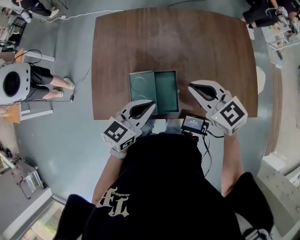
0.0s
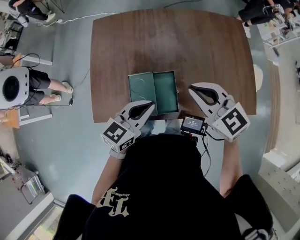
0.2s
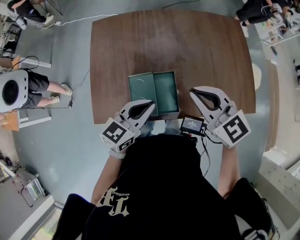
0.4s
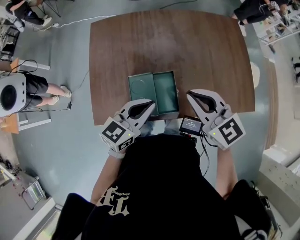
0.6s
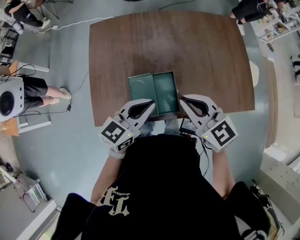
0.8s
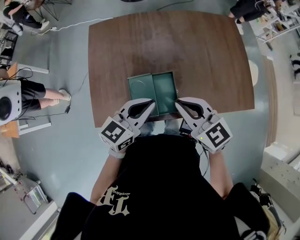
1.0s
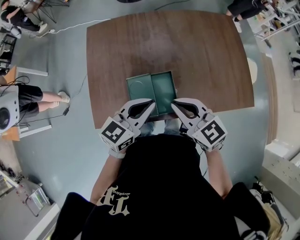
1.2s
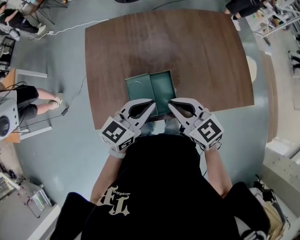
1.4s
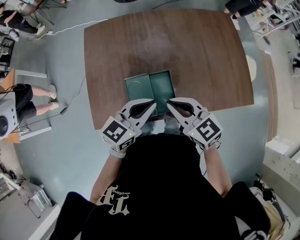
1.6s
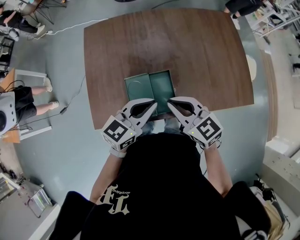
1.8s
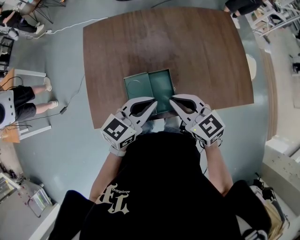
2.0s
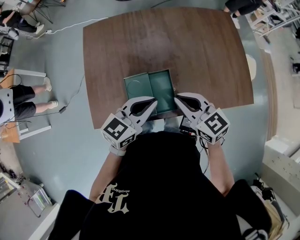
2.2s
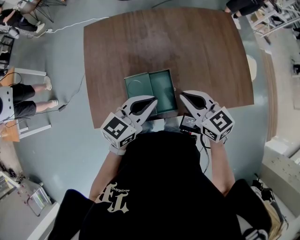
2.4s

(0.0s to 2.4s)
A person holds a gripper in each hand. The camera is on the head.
0.0s - 1.2s: The right gripper heads backward, covering about 5 cm.
1.2s - 2.4s: The right gripper ends up some 5 cm from where it was.

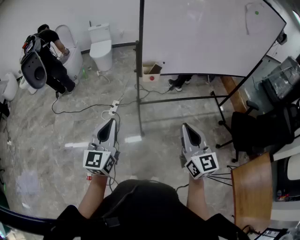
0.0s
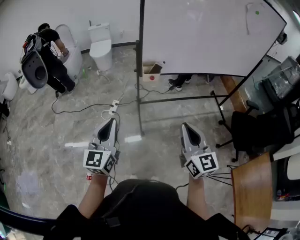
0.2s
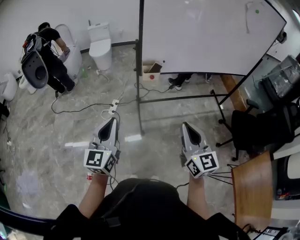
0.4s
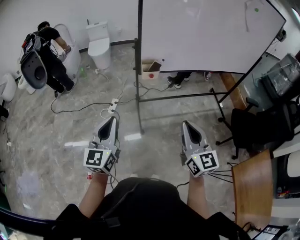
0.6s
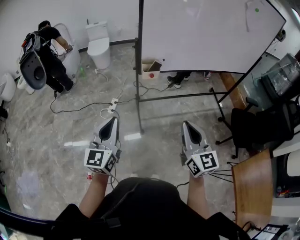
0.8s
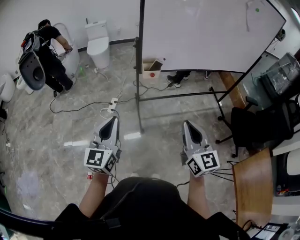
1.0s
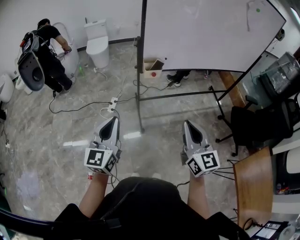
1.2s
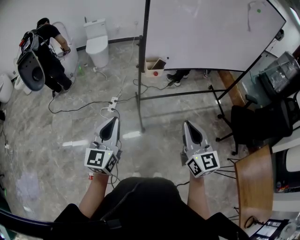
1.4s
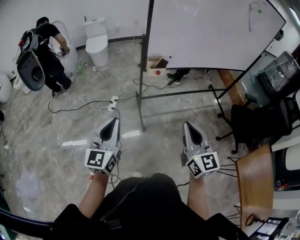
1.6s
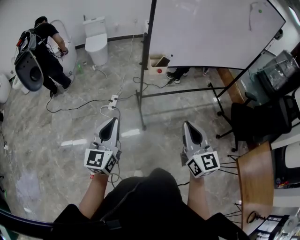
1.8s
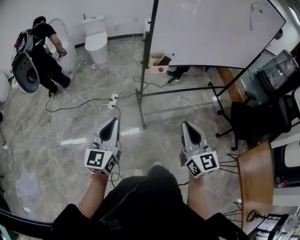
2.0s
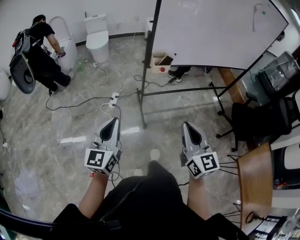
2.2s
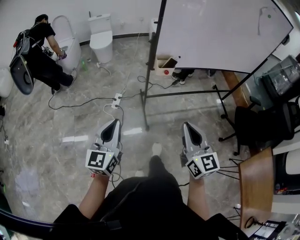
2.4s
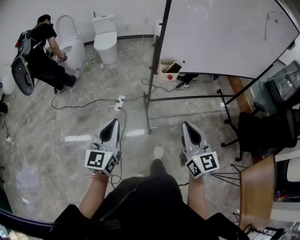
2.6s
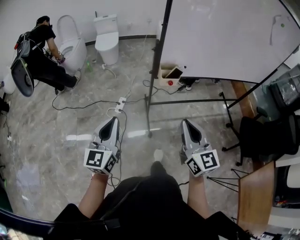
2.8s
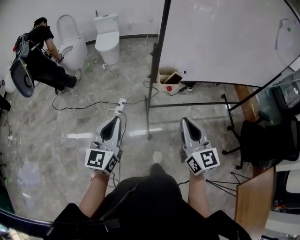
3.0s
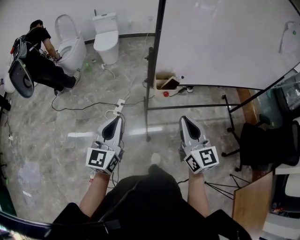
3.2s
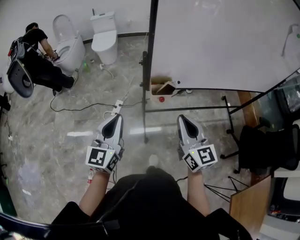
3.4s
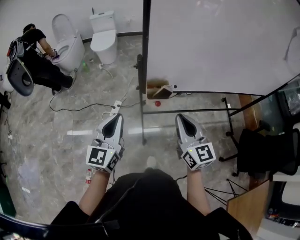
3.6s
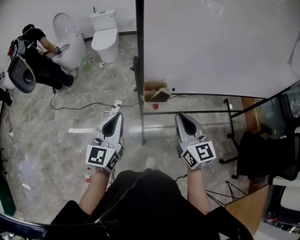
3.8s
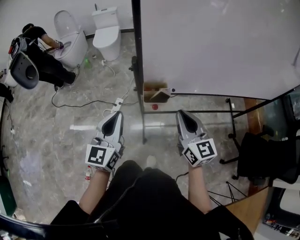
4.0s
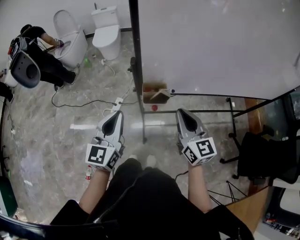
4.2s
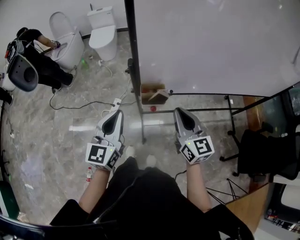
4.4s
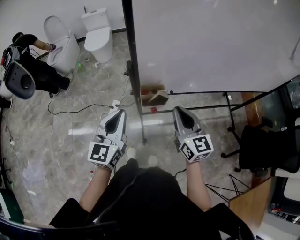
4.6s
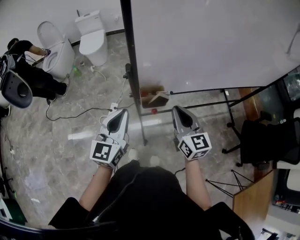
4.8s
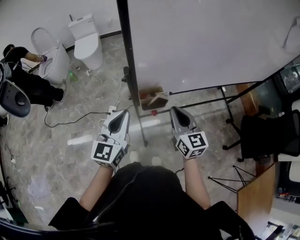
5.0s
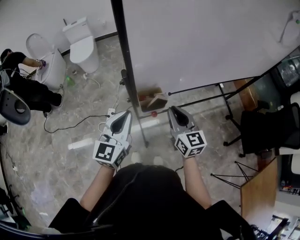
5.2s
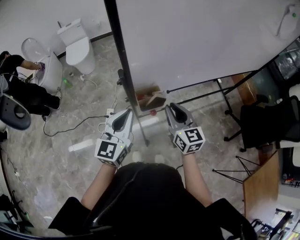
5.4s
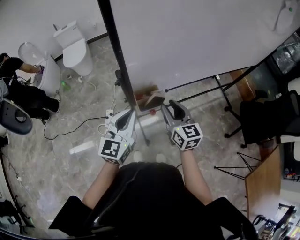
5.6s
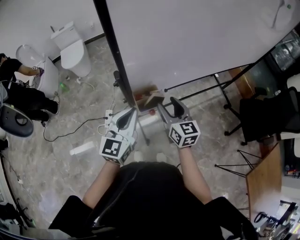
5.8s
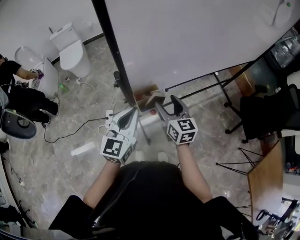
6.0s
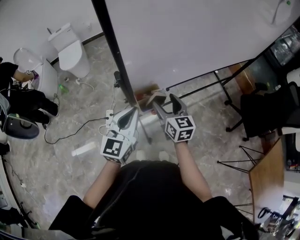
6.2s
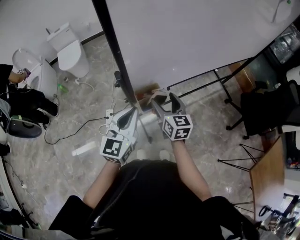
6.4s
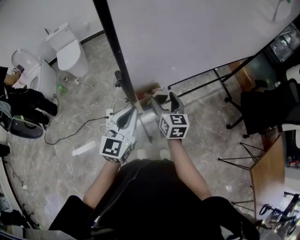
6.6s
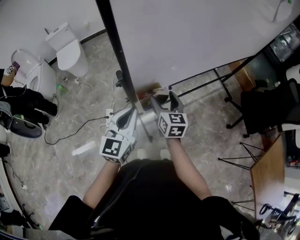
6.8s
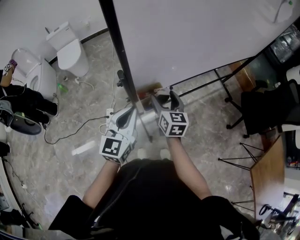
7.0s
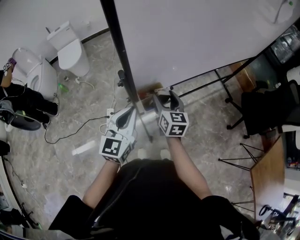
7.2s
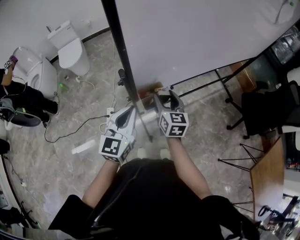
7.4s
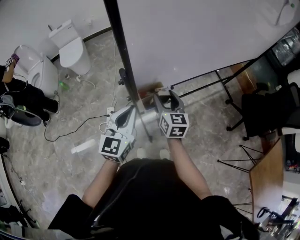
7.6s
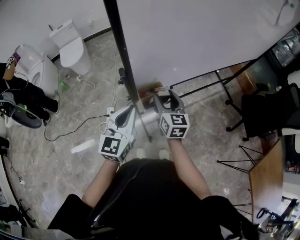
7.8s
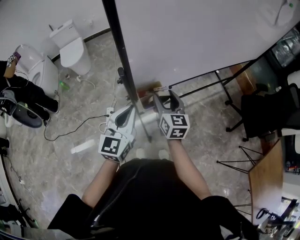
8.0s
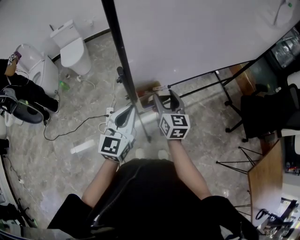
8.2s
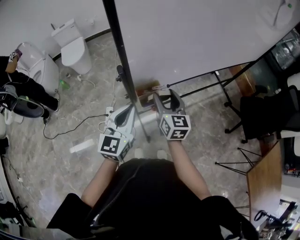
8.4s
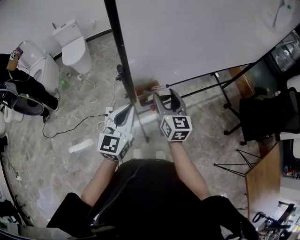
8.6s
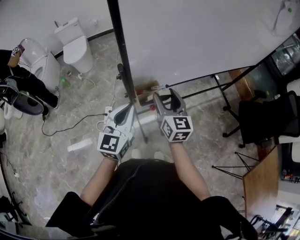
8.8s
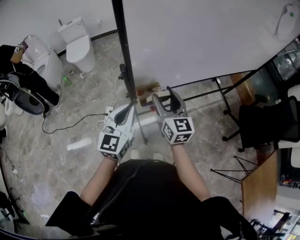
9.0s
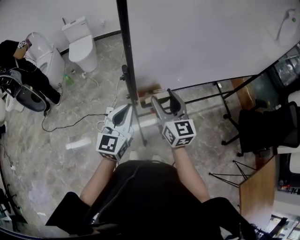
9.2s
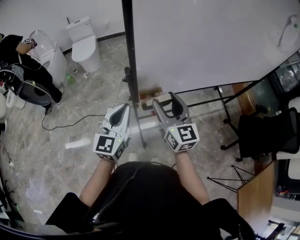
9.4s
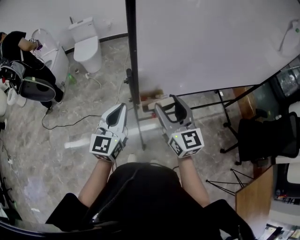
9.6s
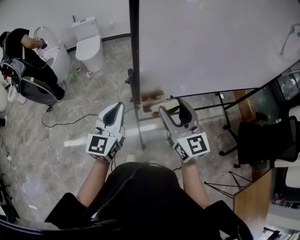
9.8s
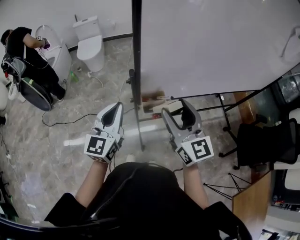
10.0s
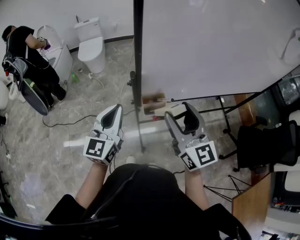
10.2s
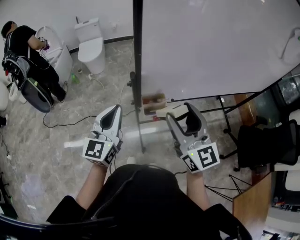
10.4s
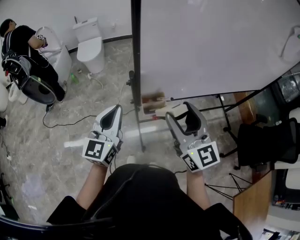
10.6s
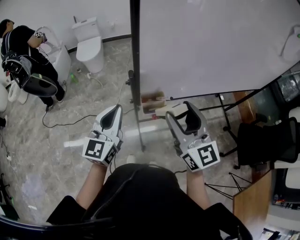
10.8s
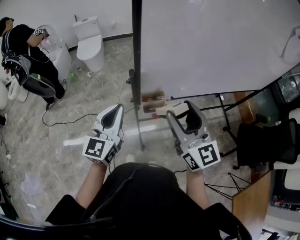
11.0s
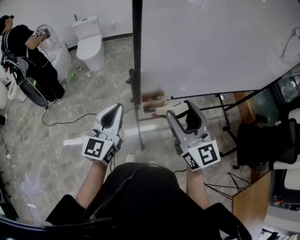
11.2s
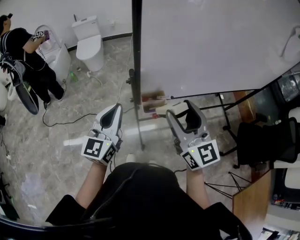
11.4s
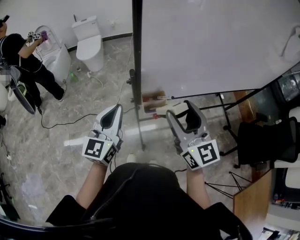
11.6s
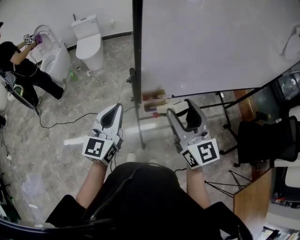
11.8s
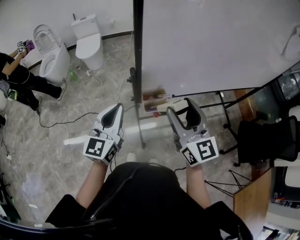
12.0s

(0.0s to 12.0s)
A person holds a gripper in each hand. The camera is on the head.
0.0s - 1.6s: Both grippers move to the left, approximately 5 cm.
1.6s - 3.0s: The grippers both shift forward by roughly 15 cm.
3.0s - 4.4s: The grippers both shift forward and to the right by roughly 20 cm.
4.4s - 6.0s: The left gripper is displaced forward by some 10 cm, and changes its angle by about 30 degrees; the right gripper shifts some 10 cm downward and forward, rotates some 20 degrees, and opens.
6.0s - 7.6s: There are only small adjustments of the grippers.
7.6s - 9.0s: The right gripper shifts roughly 5 cm upward.
9.0s - 10.4s: The right gripper shifts some 15 cm upward and backward. Meanwhile the left gripper heads upward and to the left, covering about 10 cm.
10.4s - 12.0s: The grippers make only small movements.

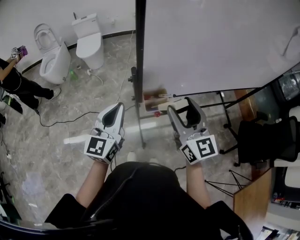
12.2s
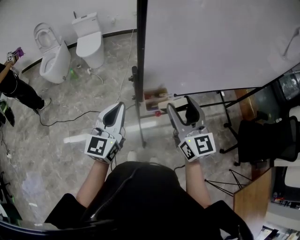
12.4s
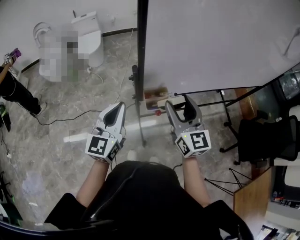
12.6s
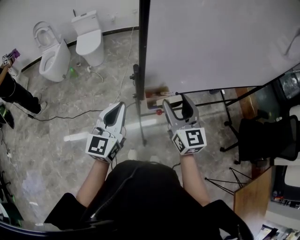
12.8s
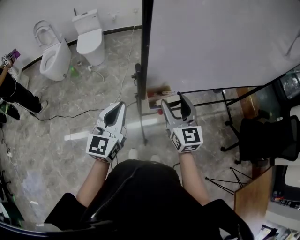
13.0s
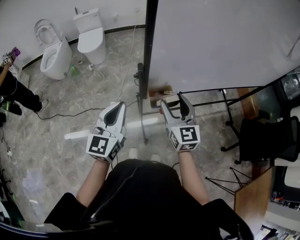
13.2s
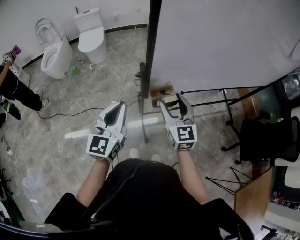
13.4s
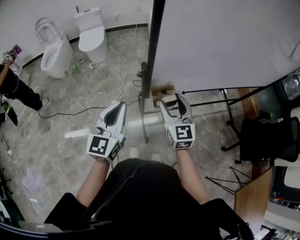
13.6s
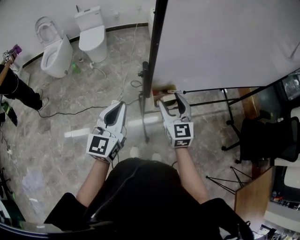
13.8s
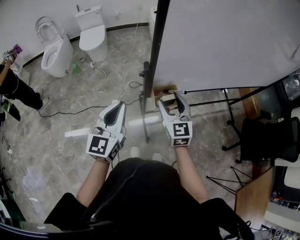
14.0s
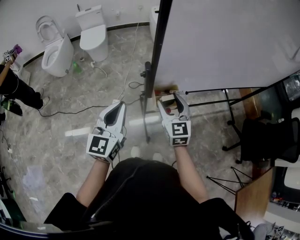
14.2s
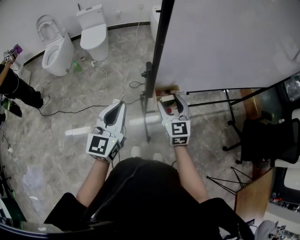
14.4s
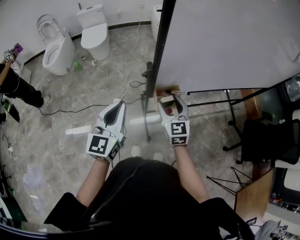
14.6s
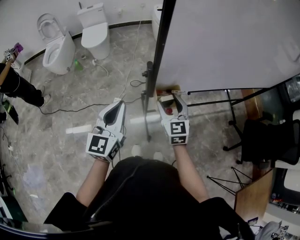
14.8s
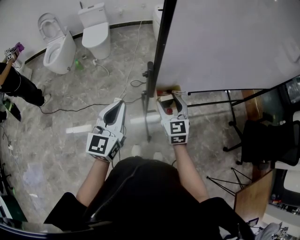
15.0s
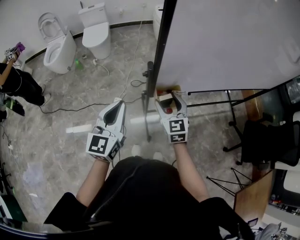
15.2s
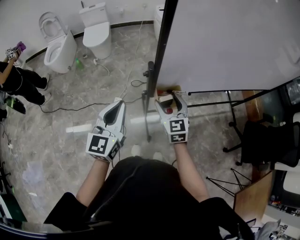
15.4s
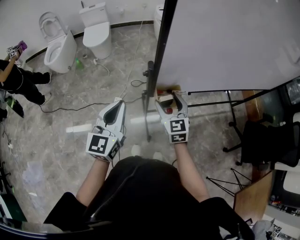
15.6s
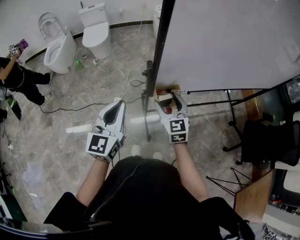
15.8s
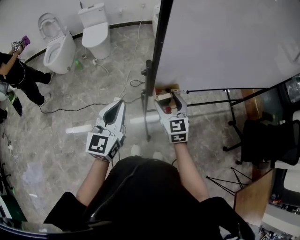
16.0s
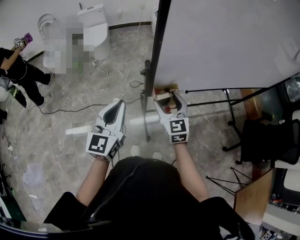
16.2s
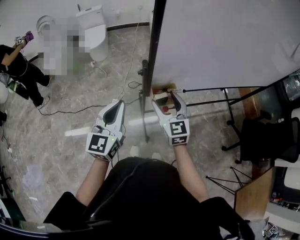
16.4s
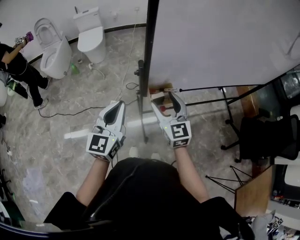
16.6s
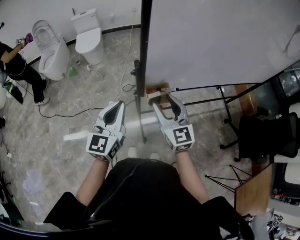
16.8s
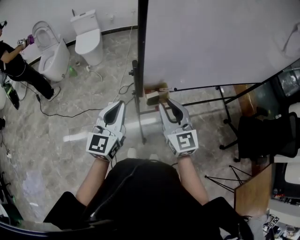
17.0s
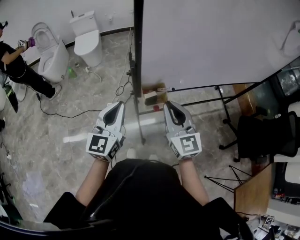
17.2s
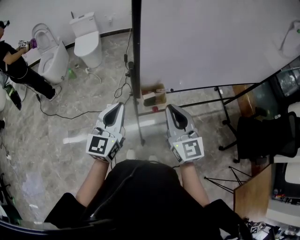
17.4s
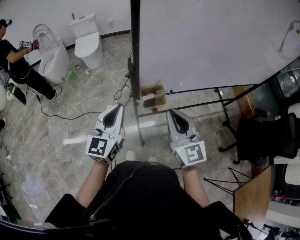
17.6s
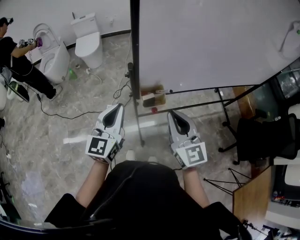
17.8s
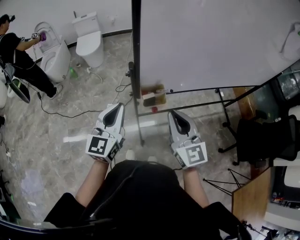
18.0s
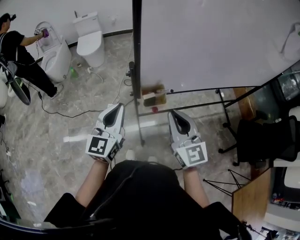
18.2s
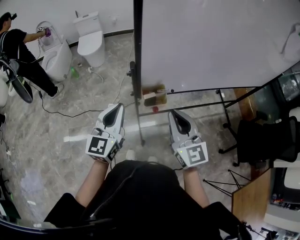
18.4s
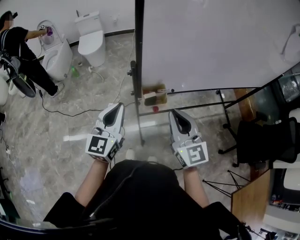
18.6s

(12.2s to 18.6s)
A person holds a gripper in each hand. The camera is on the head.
12.2s - 13.8s: The right gripper heads downward, to the left and forward, covering about 15 cm.
13.8s - 15.4s: The grippers stay close to where they were, moving slightly.
15.4s - 17.0s: The right gripper heads upward and backward, covering approximately 10 cm, and closes its fingers.
17.0s - 18.6s: The right gripper ends up about 5 cm from where it was.

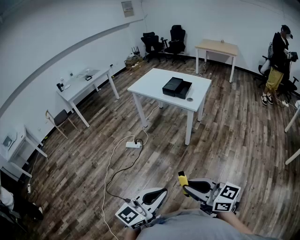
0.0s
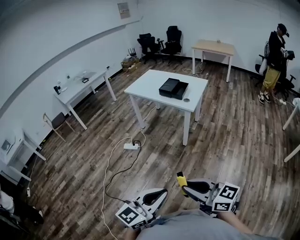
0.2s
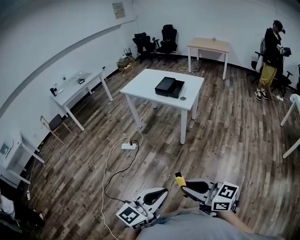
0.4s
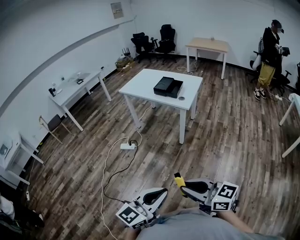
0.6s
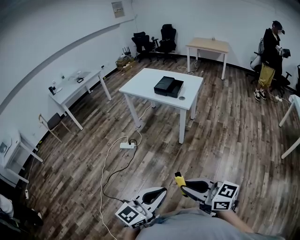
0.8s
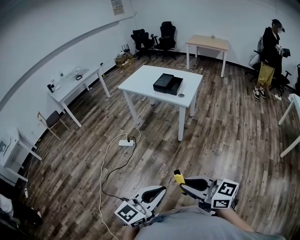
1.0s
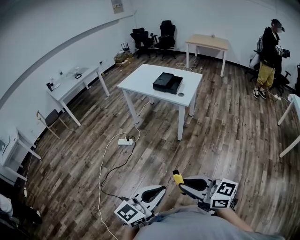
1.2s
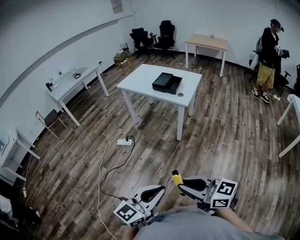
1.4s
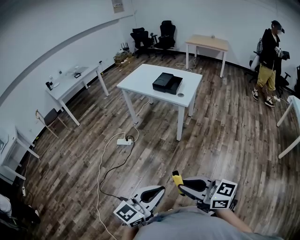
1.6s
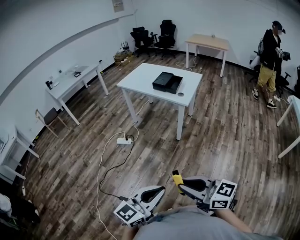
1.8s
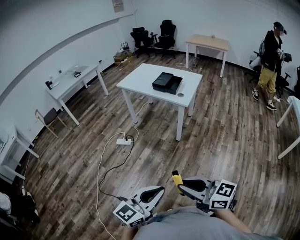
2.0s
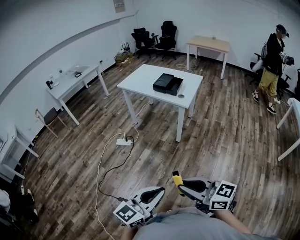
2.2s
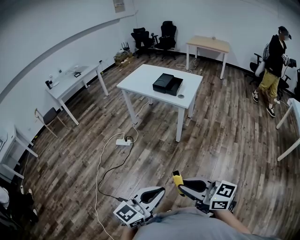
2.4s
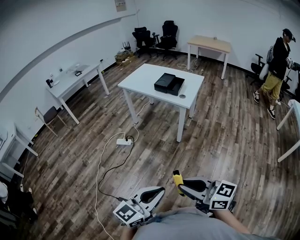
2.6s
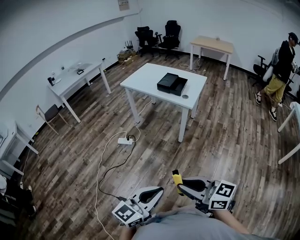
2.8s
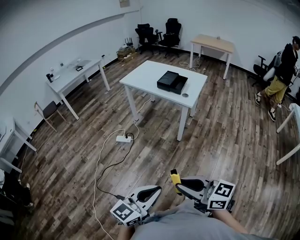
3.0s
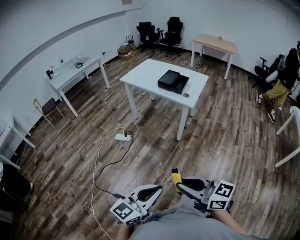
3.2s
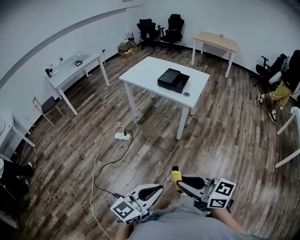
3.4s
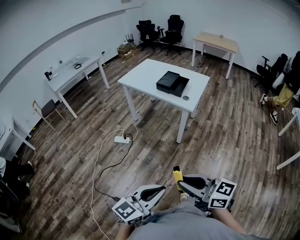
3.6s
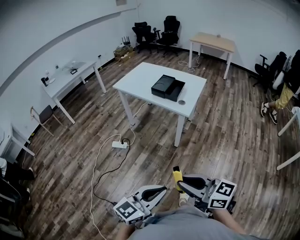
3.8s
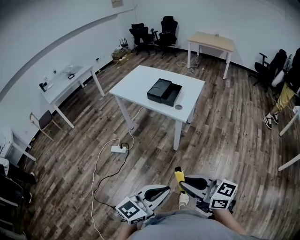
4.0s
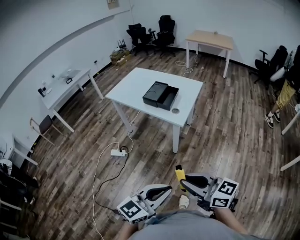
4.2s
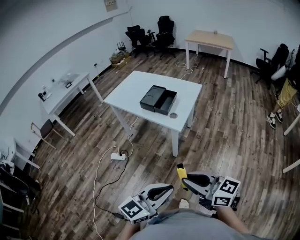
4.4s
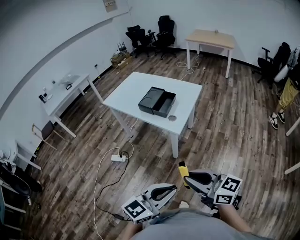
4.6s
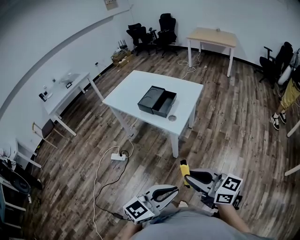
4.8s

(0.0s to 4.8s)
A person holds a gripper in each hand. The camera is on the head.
0.0s - 1.6s: The grippers move only a little.
1.6s - 3.2s: The right gripper changes place by some 5 cm.
3.2s - 4.8s: Both grippers move forward and to the right, some 35 cm.
